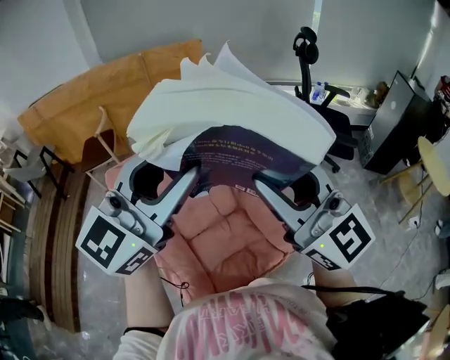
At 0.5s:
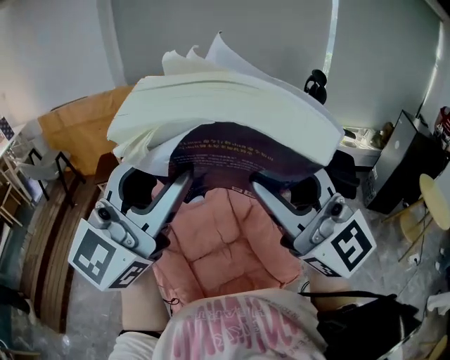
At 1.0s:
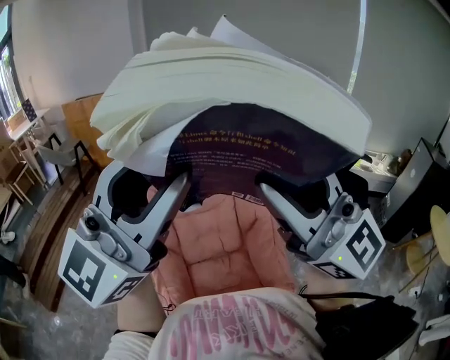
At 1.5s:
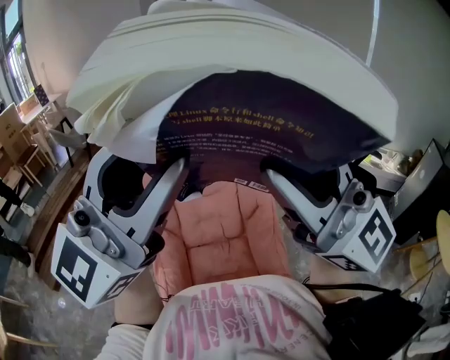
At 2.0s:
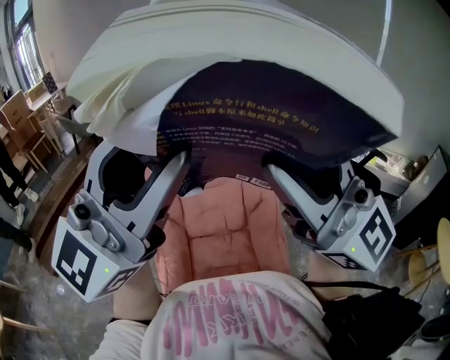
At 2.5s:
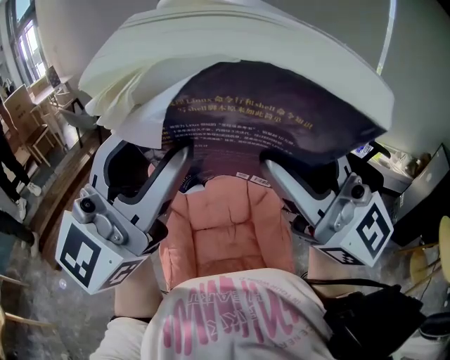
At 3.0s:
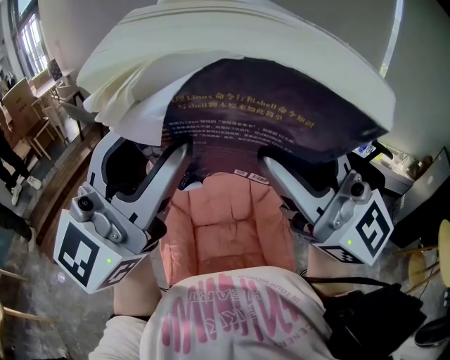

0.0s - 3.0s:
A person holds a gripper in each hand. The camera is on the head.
0.0s - 1.5s: The grippers both shift upward and backward by some 20 cm. The right gripper changes its angle by about 40 degrees. Meanwhile the left gripper rotates roughly 30 degrees.
1.5s - 3.0s: The grippers make only small movements.

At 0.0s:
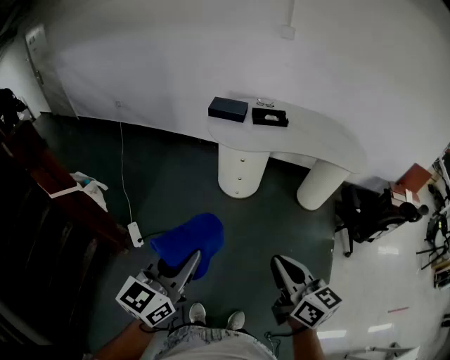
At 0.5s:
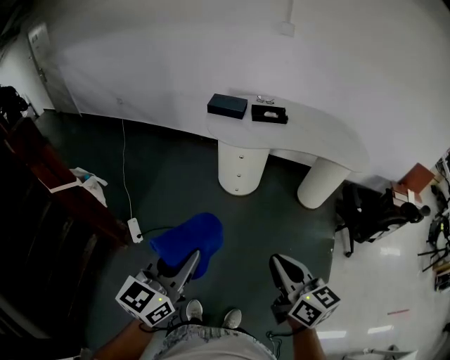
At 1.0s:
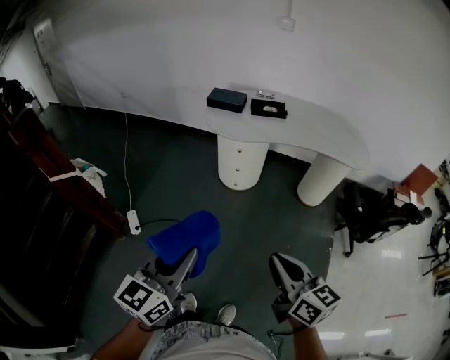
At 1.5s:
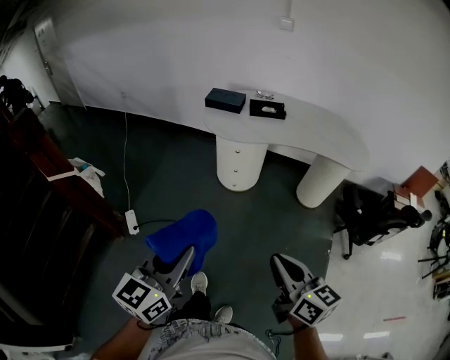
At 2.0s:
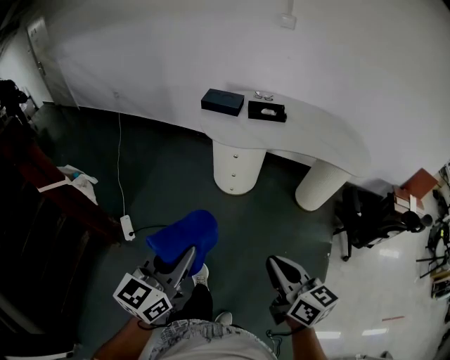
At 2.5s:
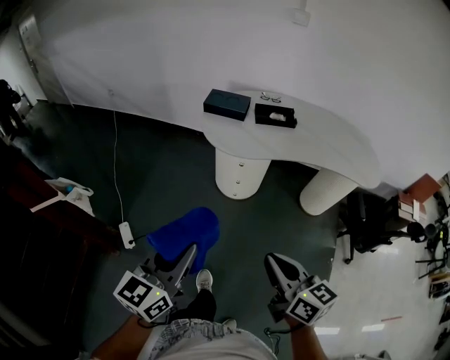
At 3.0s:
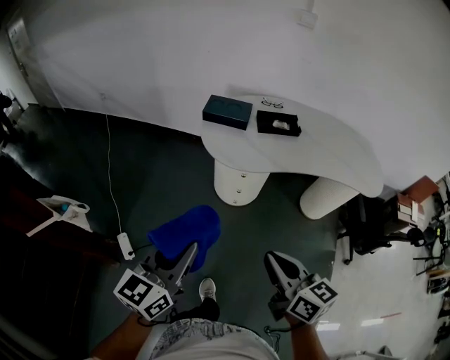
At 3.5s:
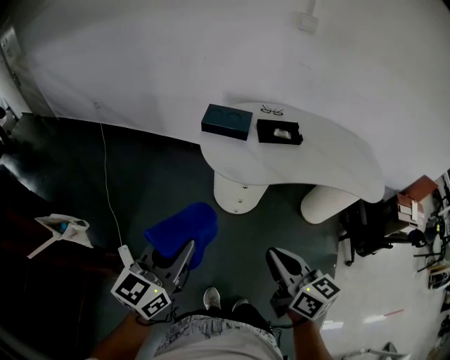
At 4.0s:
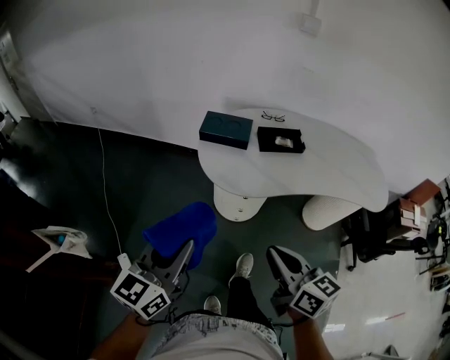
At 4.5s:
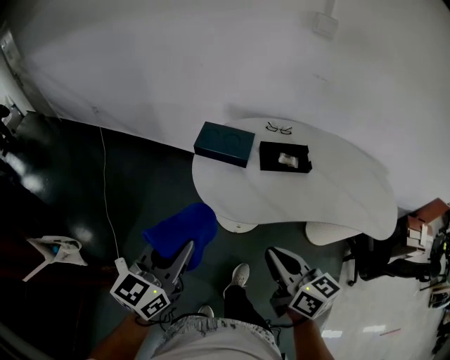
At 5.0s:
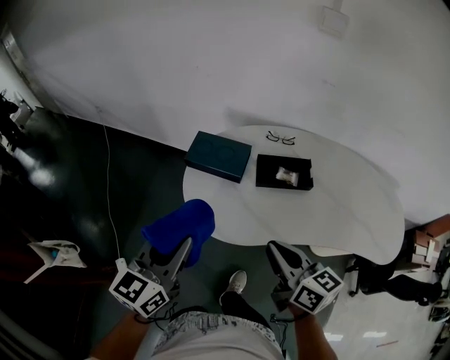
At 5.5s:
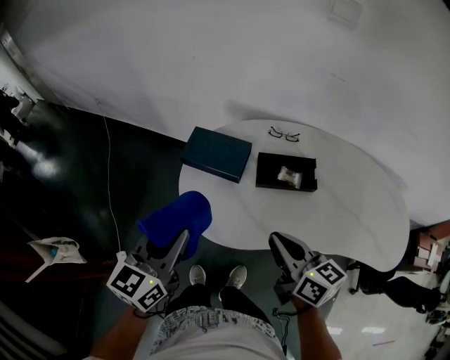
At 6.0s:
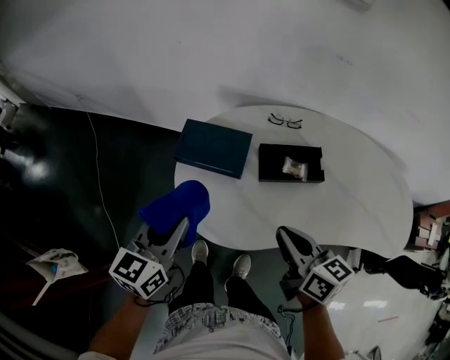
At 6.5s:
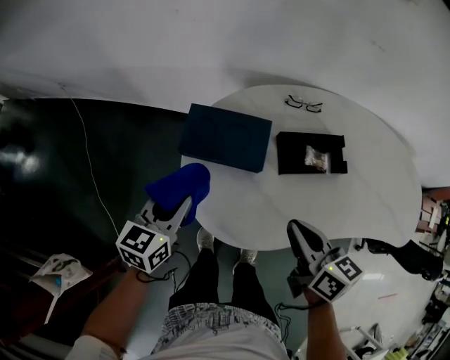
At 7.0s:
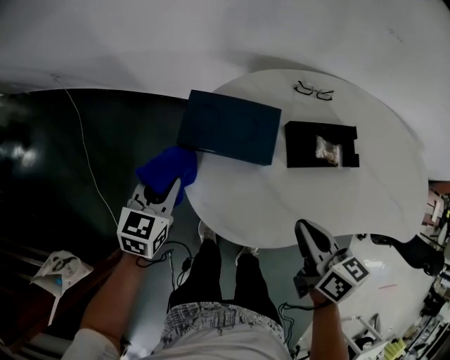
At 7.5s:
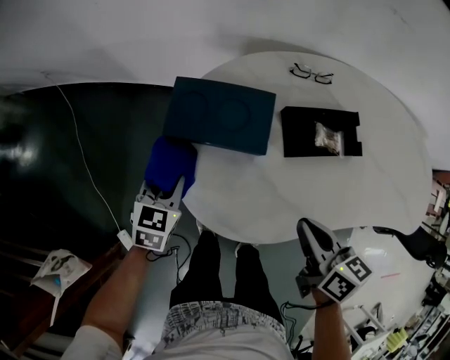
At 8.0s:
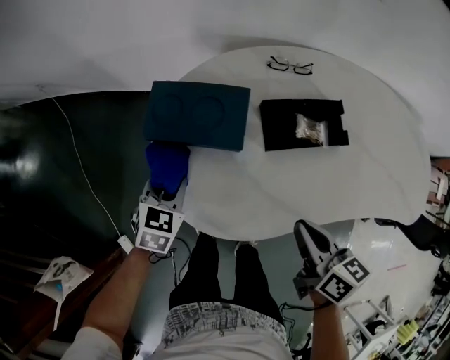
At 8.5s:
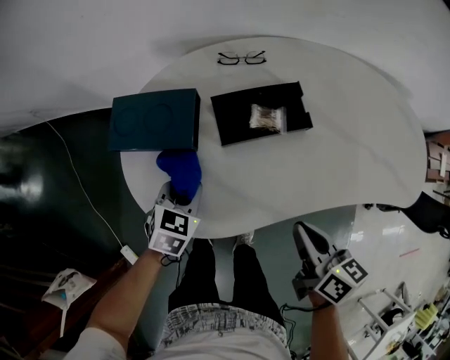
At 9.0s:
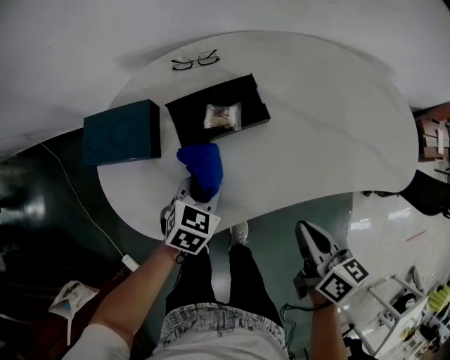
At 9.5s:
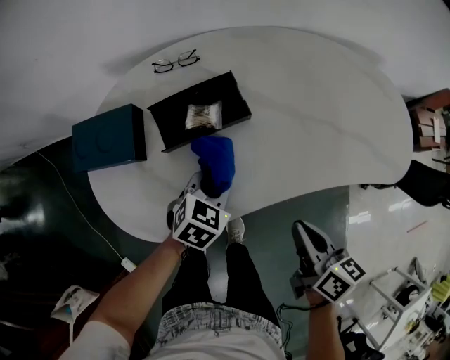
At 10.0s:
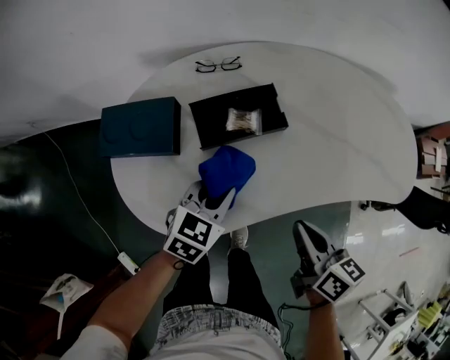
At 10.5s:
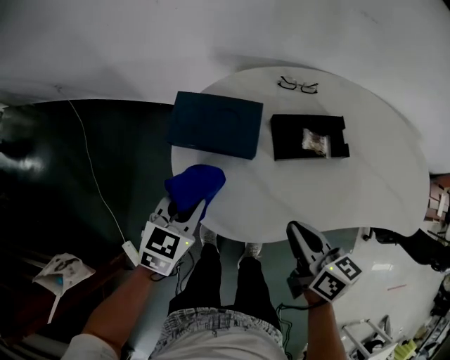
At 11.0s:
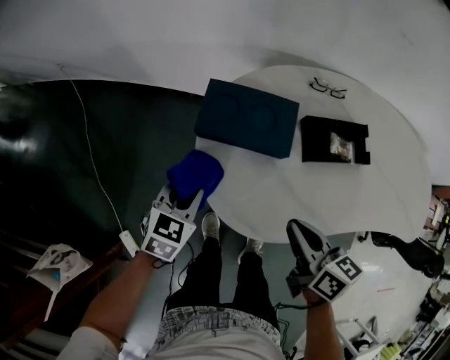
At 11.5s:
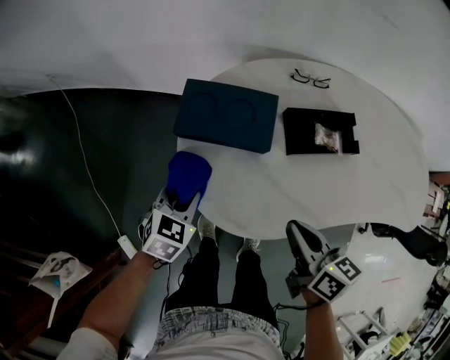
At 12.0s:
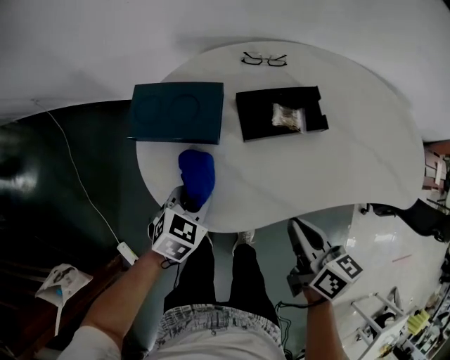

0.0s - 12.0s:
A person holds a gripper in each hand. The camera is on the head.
0.0s - 2.0s: The grippers both shift to the right by approximately 5 cm.
2.0s - 4.0s: The two grippers go approximately 35 cm forward.
4.0s - 6.0s: The left gripper shifts roughly 35 cm forward, while the right gripper is displaced forward and to the right by about 35 cm.
6.0s - 8.0s: The left gripper shifts approximately 25 cm downward and forward, and changes its angle by about 40 degrees, while the right gripper is displaced downward by roughly 10 cm.
8.0s - 10.0s: The right gripper heads to the right, covering approximately 15 cm; the left gripper heads to the right, covering roughly 30 cm, and changes its angle by some 20 degrees.
10.0s - 12.0s: The grippers both shift to the left by roughly 15 cm.

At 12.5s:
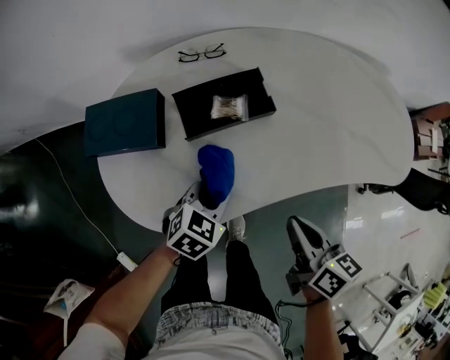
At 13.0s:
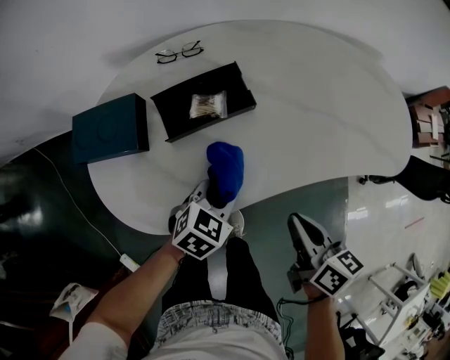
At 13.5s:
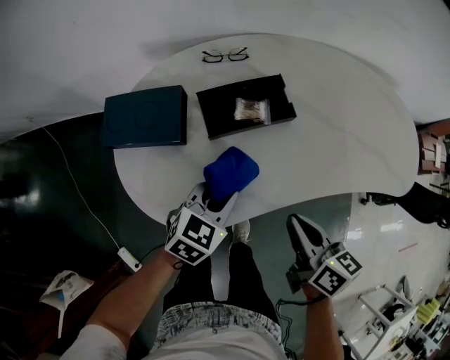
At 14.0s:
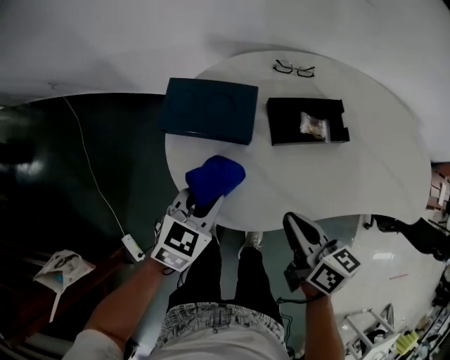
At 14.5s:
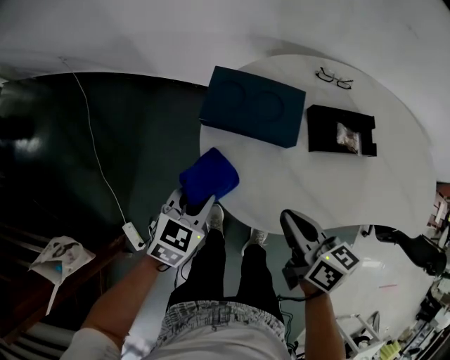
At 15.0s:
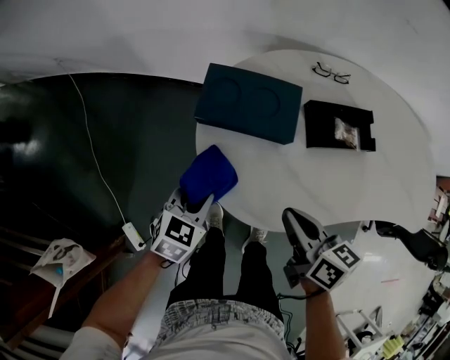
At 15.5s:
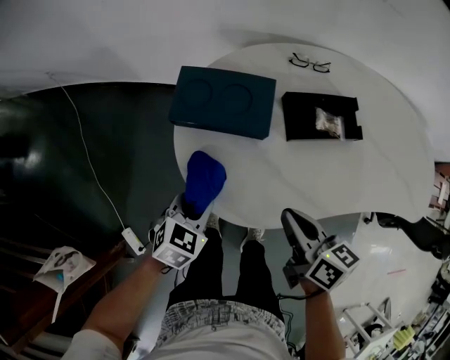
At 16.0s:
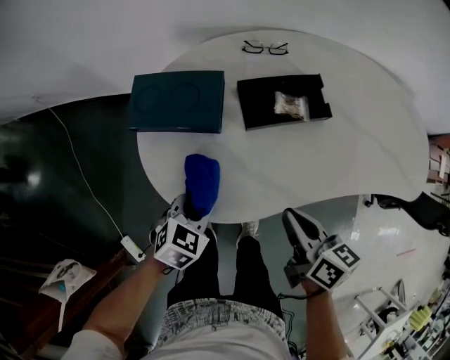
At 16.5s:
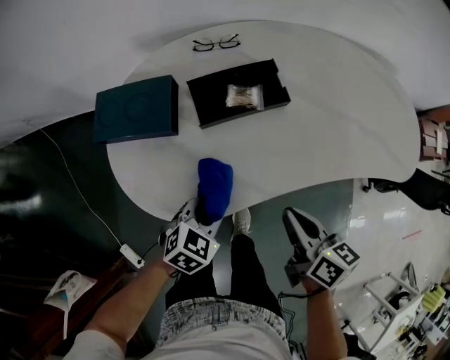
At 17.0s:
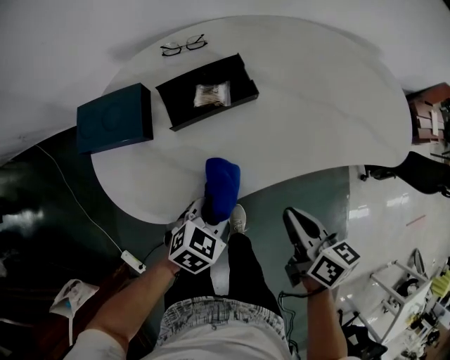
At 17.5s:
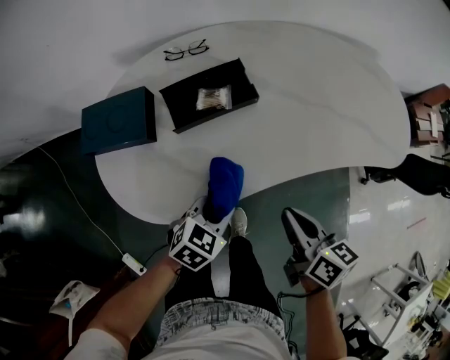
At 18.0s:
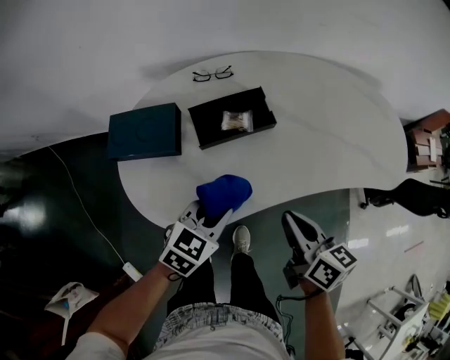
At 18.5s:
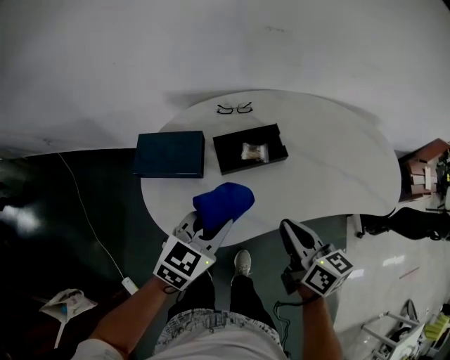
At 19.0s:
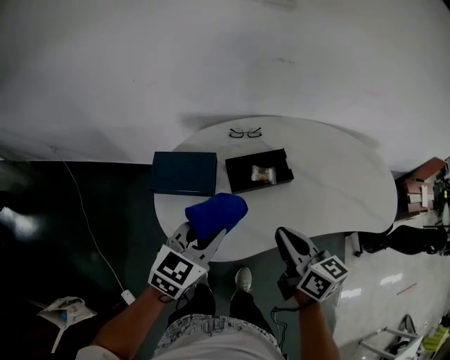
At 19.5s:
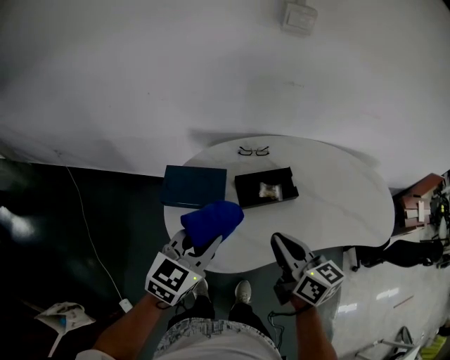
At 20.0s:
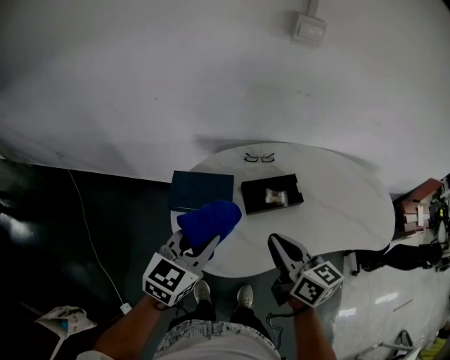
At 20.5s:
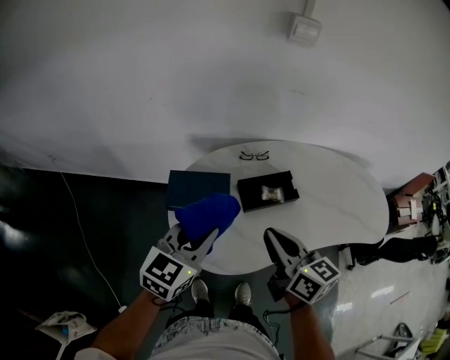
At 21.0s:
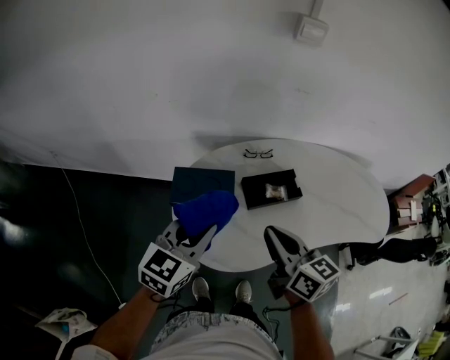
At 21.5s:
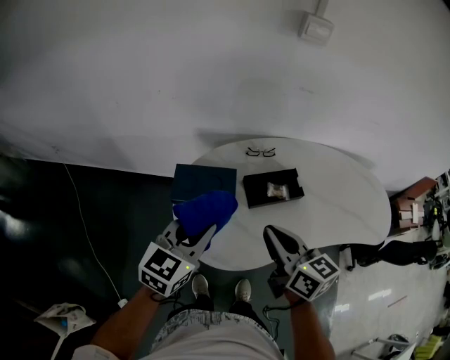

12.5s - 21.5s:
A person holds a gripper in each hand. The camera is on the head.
12.5s - 14.5s: The right gripper ends up about 30 cm from where it was, and rotates about 20 degrees. Meanwhile the left gripper shifts by some 35 cm, and changes its angle by about 20 degrees.
14.5s - 17.0s: The left gripper moves approximately 35 cm, and turns by some 30 degrees. The right gripper changes place by about 30 cm, and changes its angle by some 20 degrees.
17.0s - 19.5s: The right gripper is displaced to the left and upward by about 25 cm, and swivels about 20 degrees, while the left gripper moves upward and to the left, about 35 cm, and turns by roughly 30 degrees.
19.5s - 21.5s: Both grippers move to the left, about 5 cm.

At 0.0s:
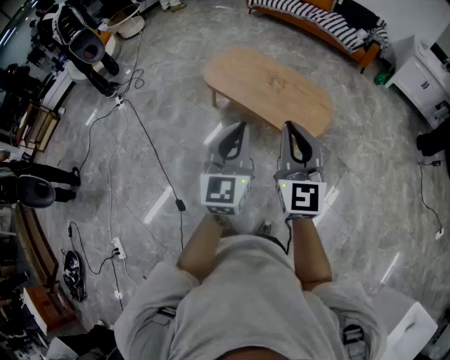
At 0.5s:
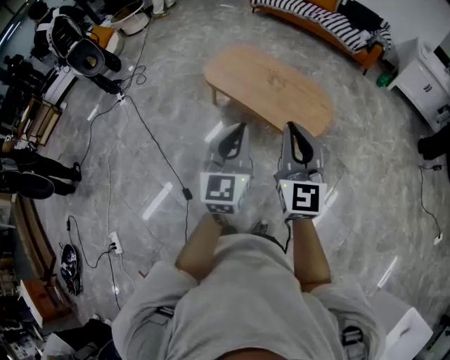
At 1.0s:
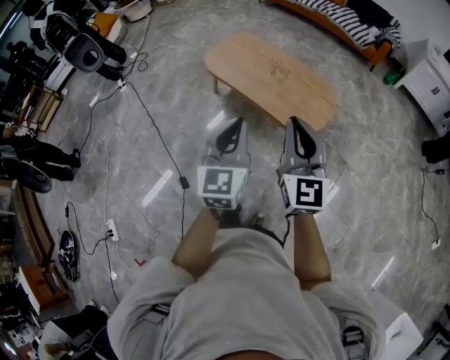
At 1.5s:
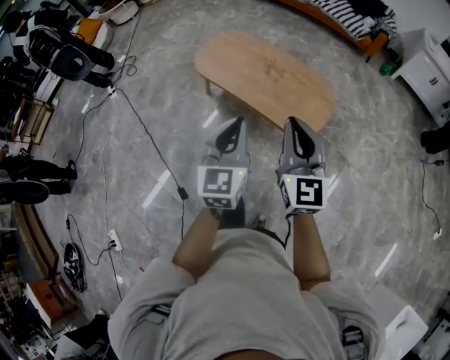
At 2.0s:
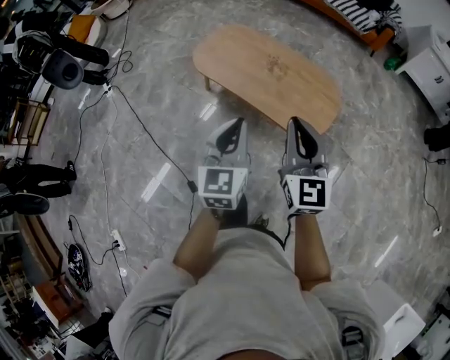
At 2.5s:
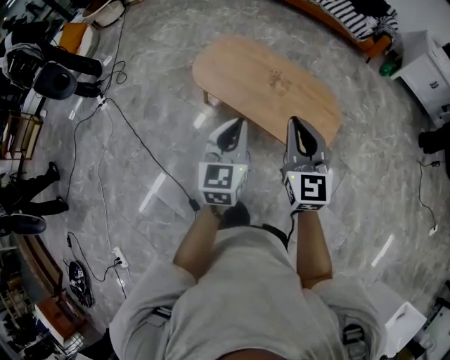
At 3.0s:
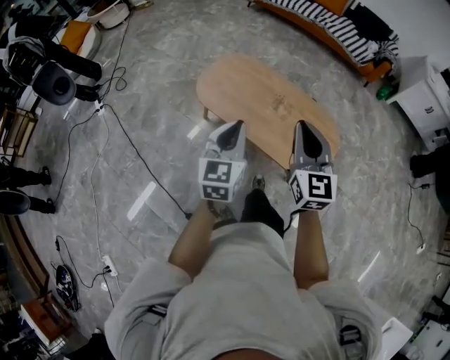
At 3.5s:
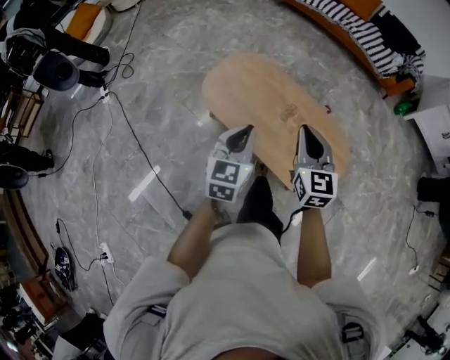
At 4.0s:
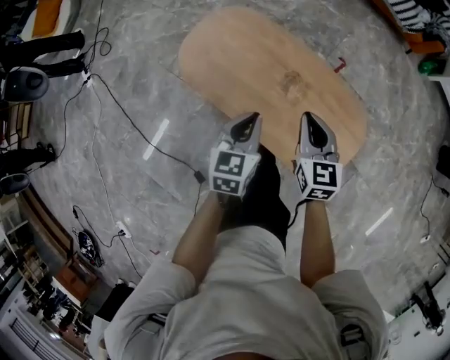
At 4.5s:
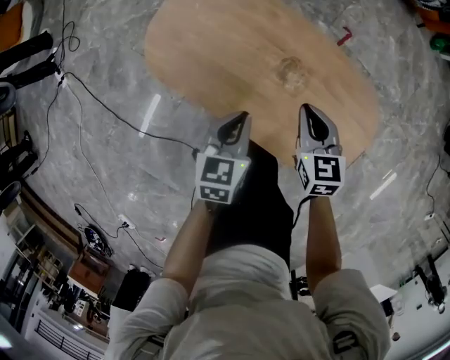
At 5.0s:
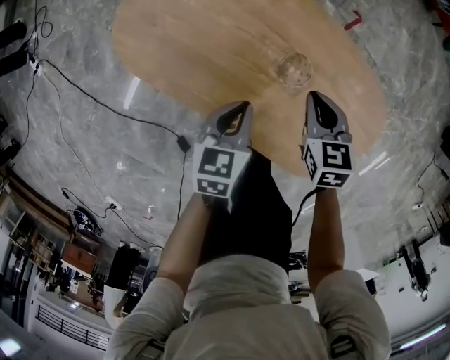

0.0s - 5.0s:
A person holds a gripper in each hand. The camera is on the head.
0.0s - 2.5s: The right gripper moves forward, approximately 25 cm. Meanwhile the left gripper shifts approximately 25 cm forward and downward.
2.5s - 5.0s: Both grippers move downward and forward, roughly 60 cm. The left gripper points its fingers about 30 degrees further downward. Meanwhile the right gripper angles its fingers downward, by roughly 50 degrees.
